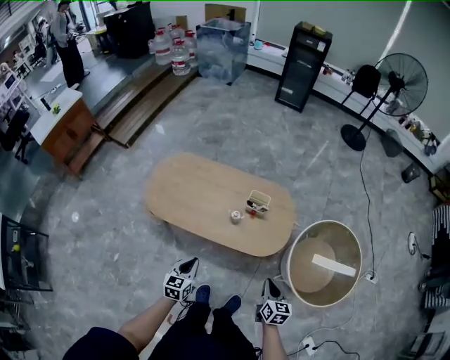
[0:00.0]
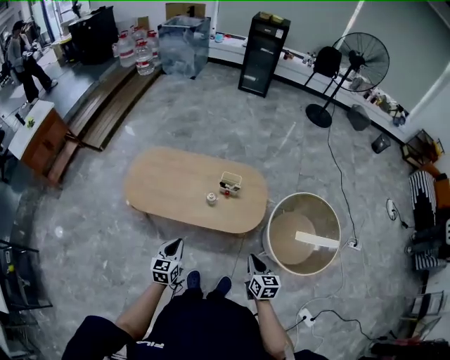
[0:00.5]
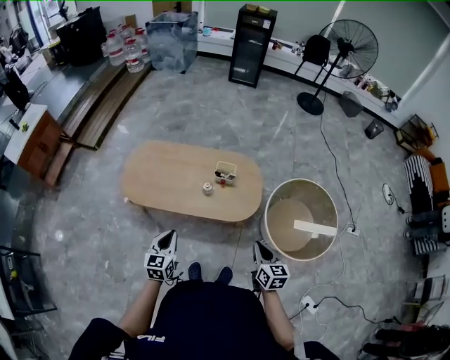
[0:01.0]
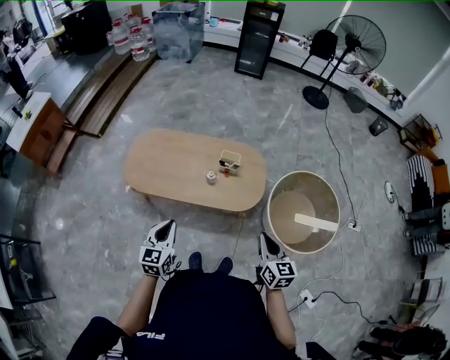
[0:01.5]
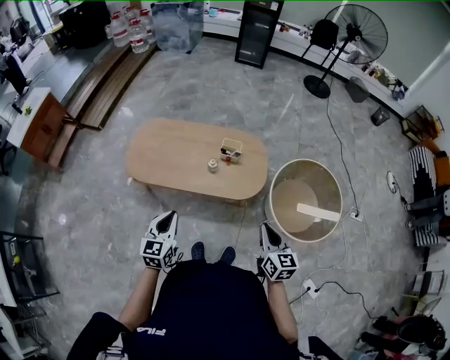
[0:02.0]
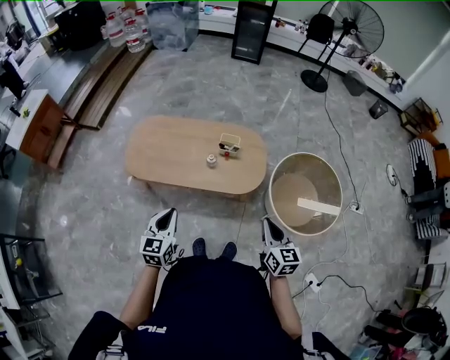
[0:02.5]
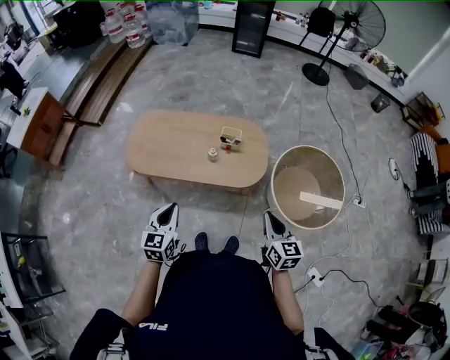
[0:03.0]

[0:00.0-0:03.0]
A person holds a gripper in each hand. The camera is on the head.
0:00.0 to 0:01.5: Both grippers travel together upward, approximately 20 cm.
0:01.5 to 0:03.0: The grippers make only small movements.

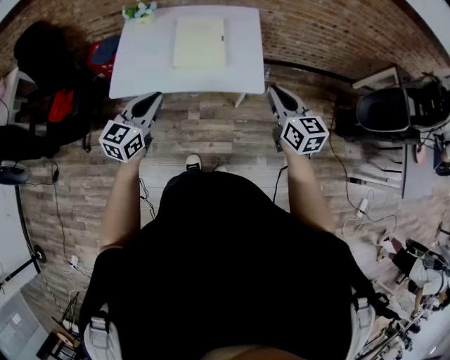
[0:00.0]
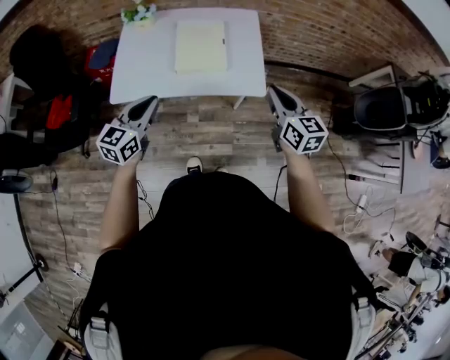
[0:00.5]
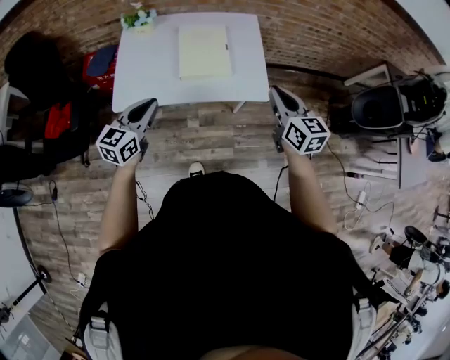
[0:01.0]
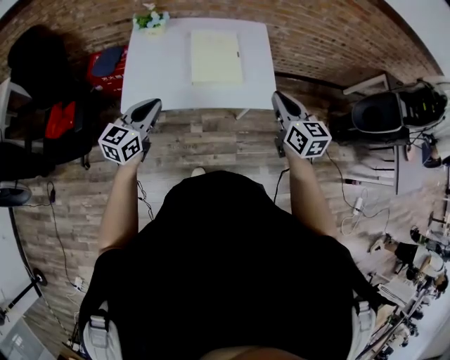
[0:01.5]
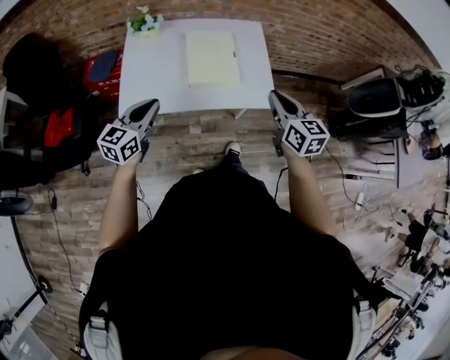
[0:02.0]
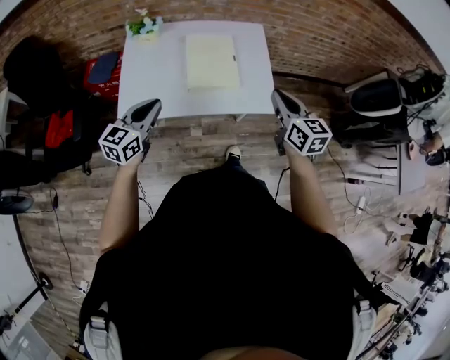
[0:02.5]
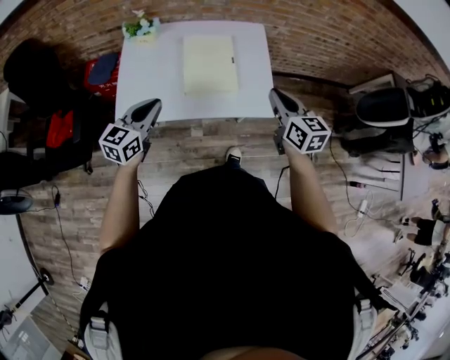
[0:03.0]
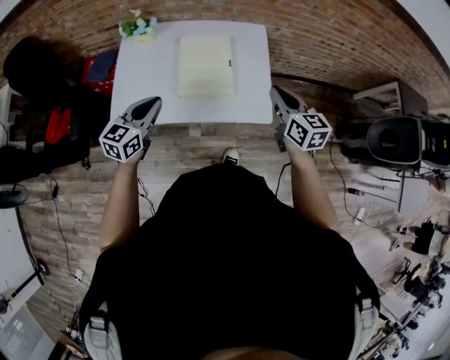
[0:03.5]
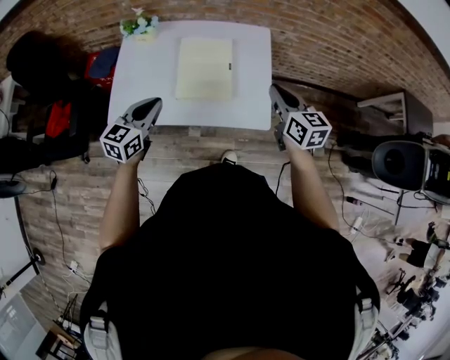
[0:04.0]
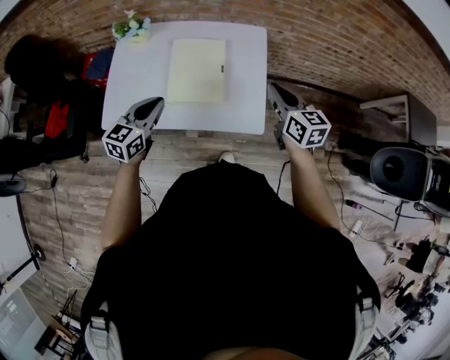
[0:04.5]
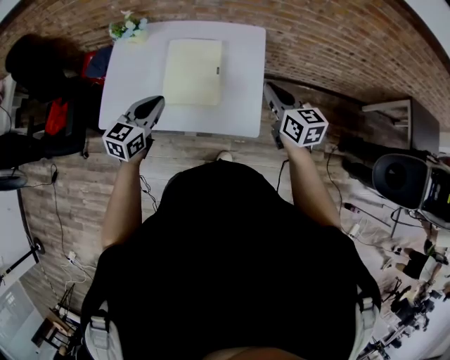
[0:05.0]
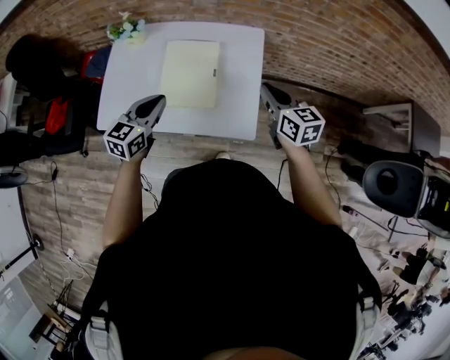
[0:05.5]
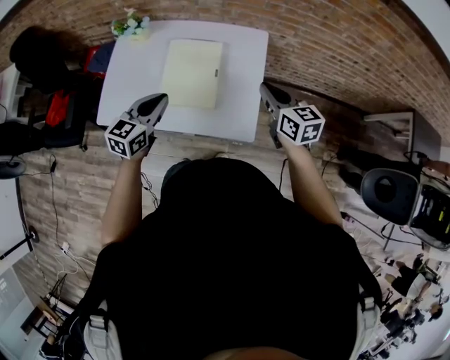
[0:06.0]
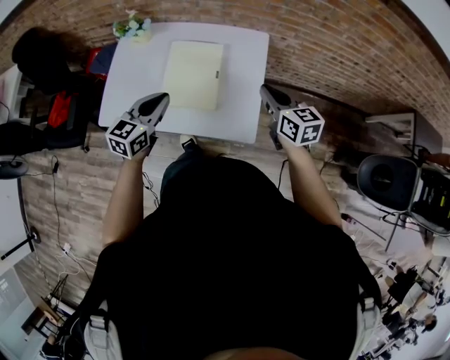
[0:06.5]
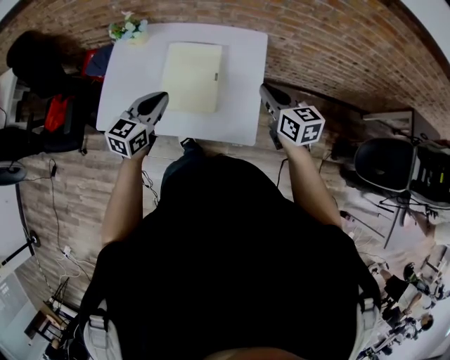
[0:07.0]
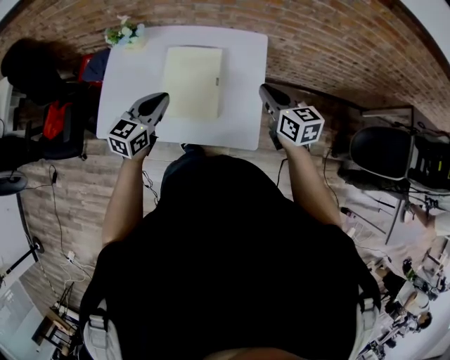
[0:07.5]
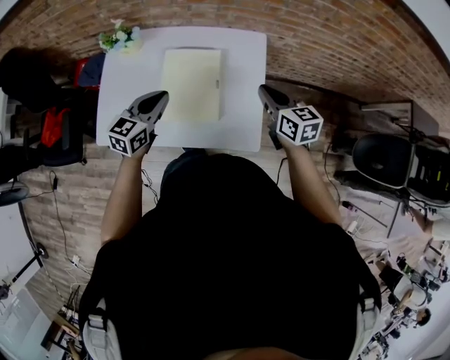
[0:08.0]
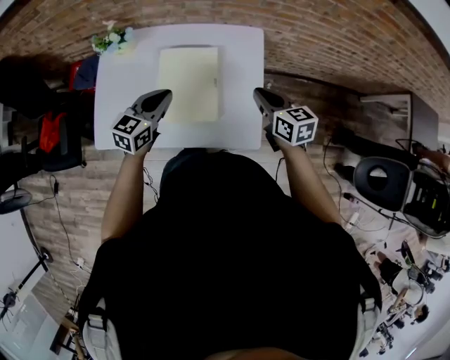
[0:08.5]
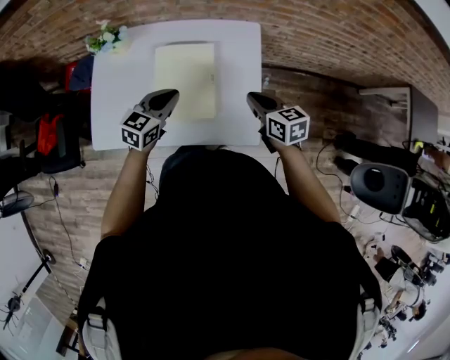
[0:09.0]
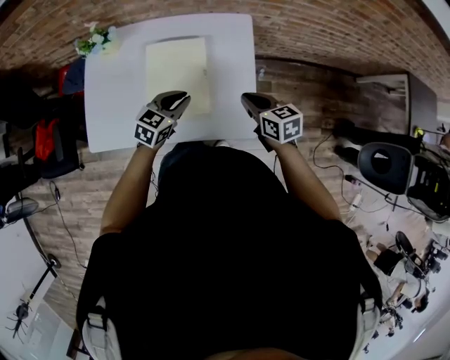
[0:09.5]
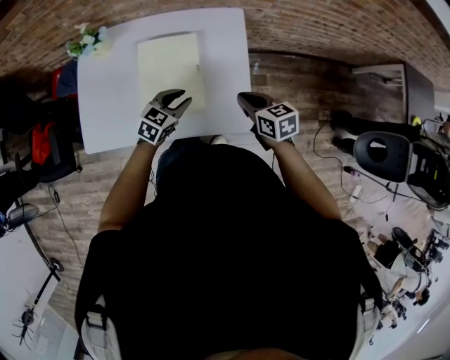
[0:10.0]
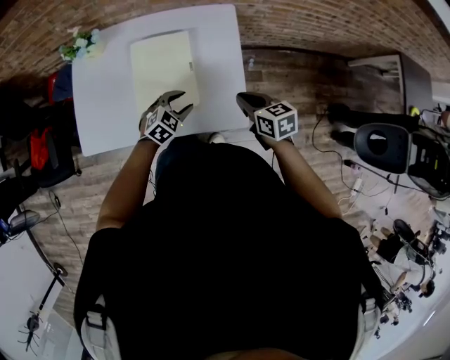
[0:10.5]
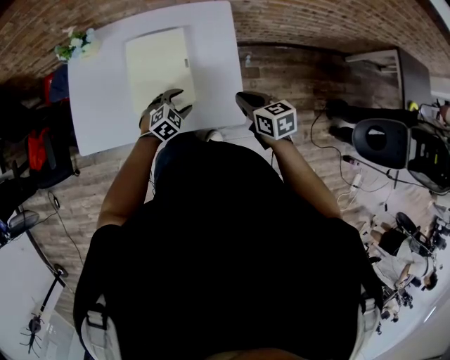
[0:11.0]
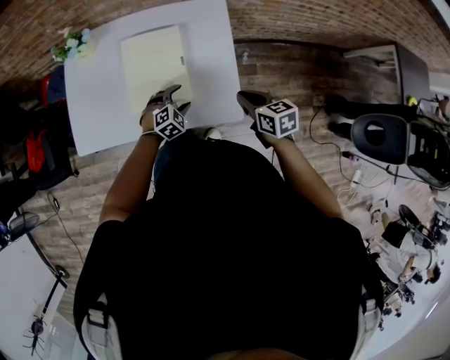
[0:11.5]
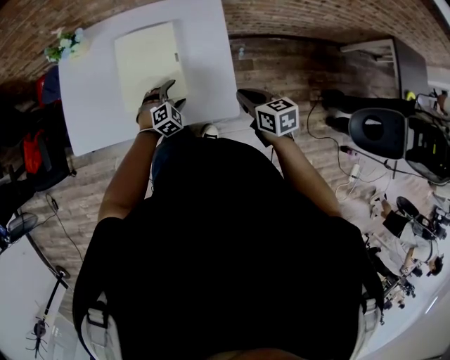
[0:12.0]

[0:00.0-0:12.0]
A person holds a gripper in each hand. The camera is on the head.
0:00.0 to 0:02.0: The grippers both shift to the left by some 15 cm.
0:02.0 to 0:04.0: The two grippers go some 15 cm forward and to the right.
0:04.0 to 0:06.0: The right gripper moves forward and to the right, roughly 10 cm. Meanwhile the left gripper heads to the right and forward, covering approximately 15 cm.
0:06.0 to 0:08.0: The right gripper travels forward by roughly 5 cm; the left gripper moves forward, approximately 10 cm.
0:08.0 to 0:10.0: The right gripper shifts approximately 10 cm downward and backward; the left gripper heads downward and to the right, covering some 15 cm, and swivels about 30 degrees.
0:10.0 to 0:12.0: The left gripper goes approximately 10 cm downward, turns by some 40 degrees, and opens. Meanwhile the right gripper goes some 10 cm to the right and backward.

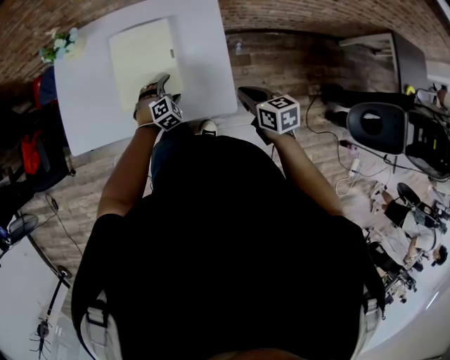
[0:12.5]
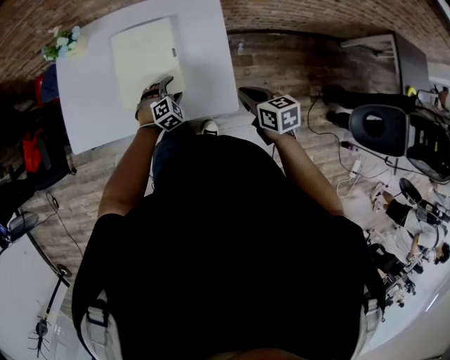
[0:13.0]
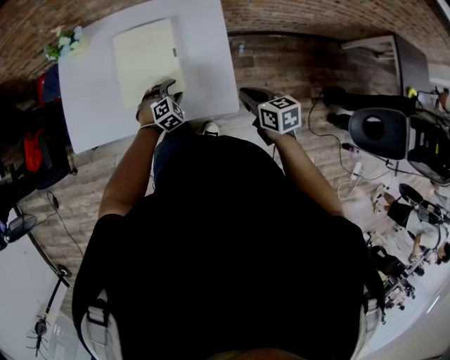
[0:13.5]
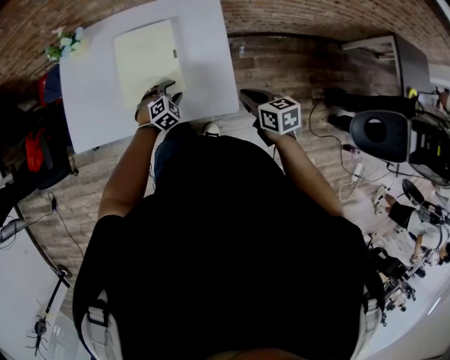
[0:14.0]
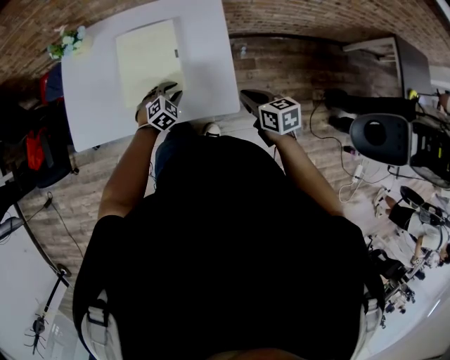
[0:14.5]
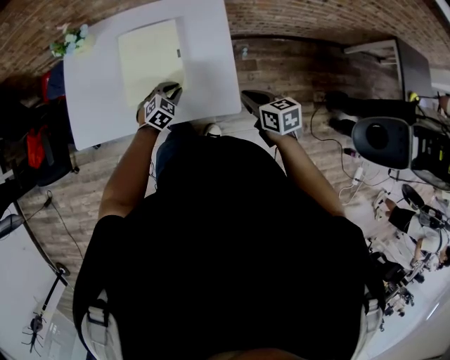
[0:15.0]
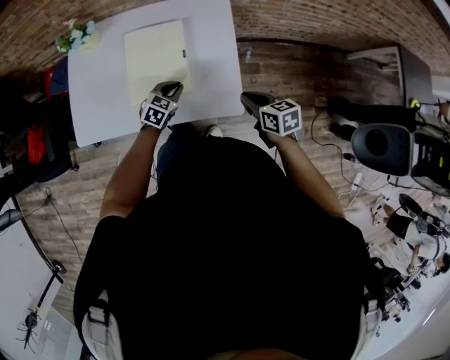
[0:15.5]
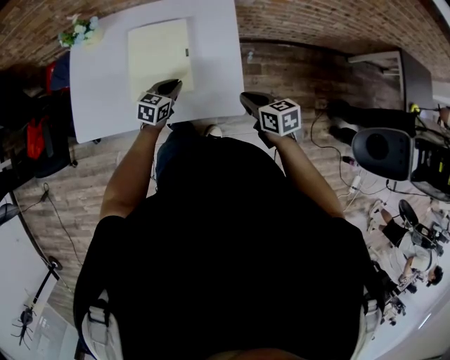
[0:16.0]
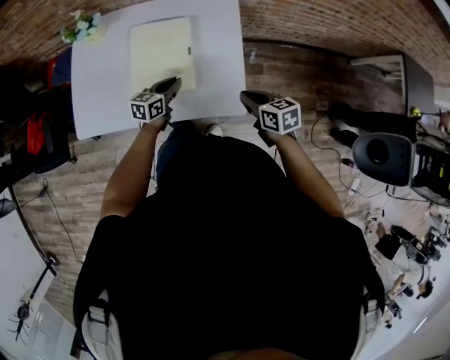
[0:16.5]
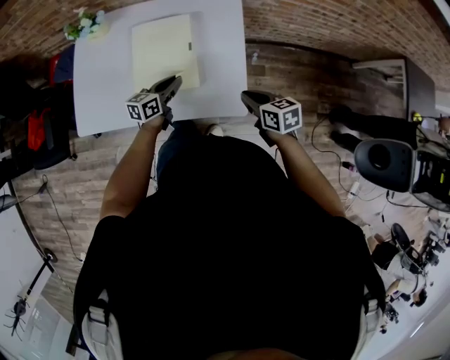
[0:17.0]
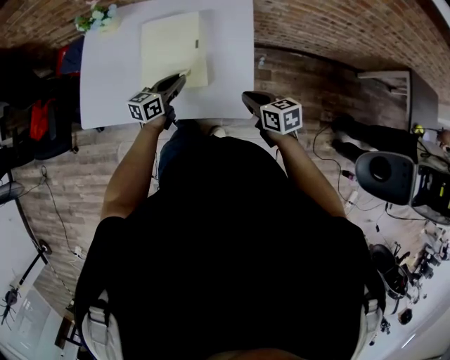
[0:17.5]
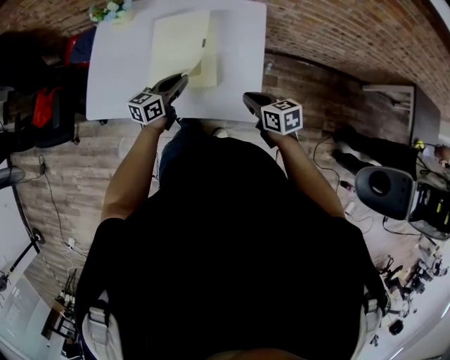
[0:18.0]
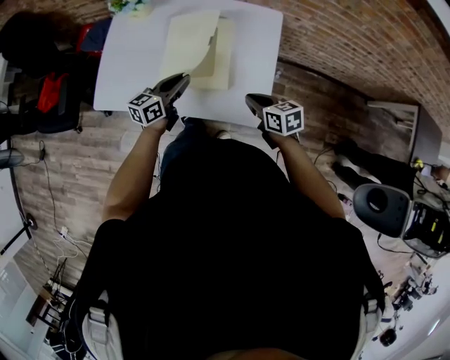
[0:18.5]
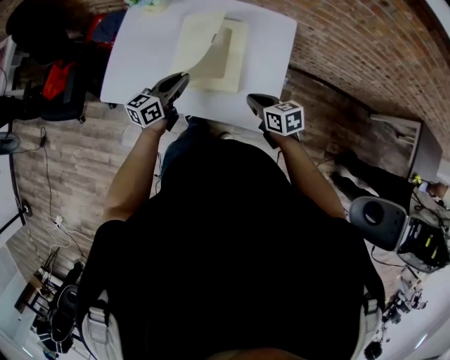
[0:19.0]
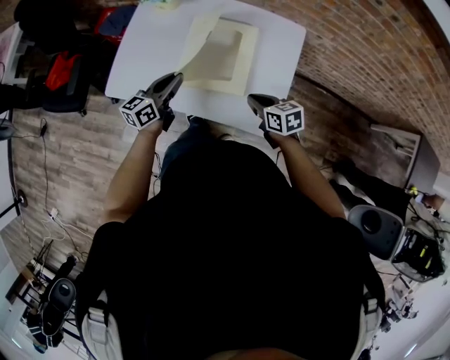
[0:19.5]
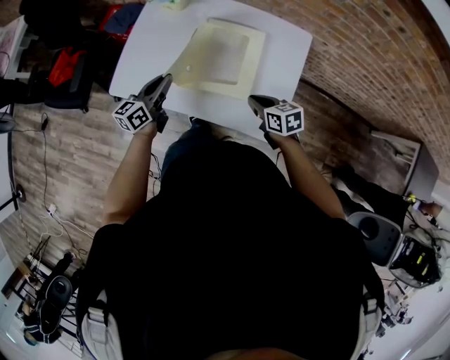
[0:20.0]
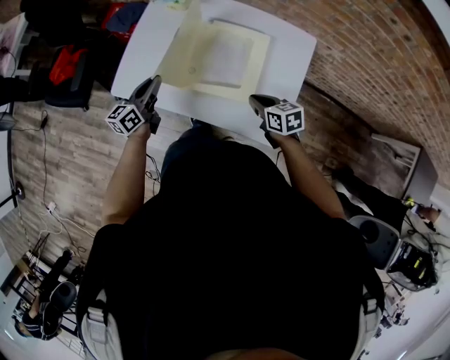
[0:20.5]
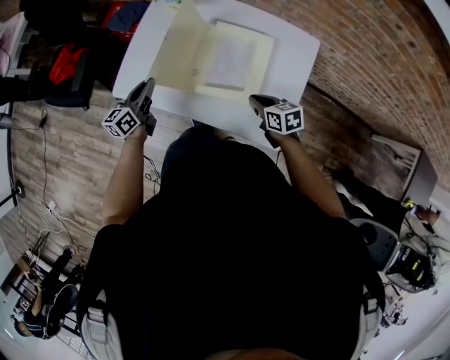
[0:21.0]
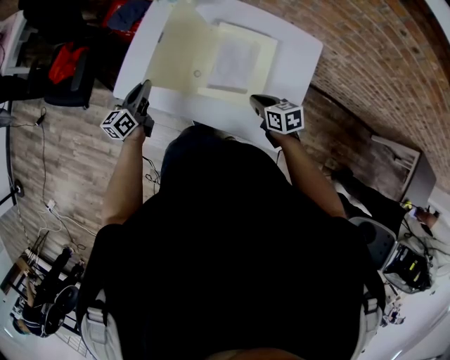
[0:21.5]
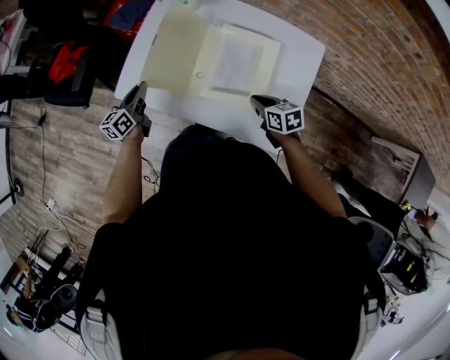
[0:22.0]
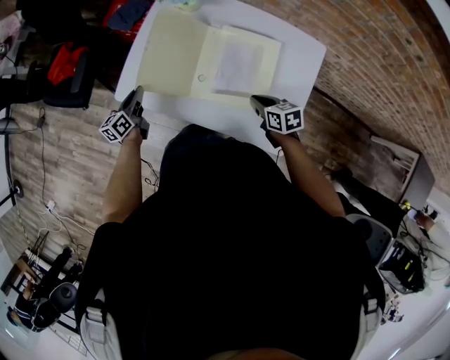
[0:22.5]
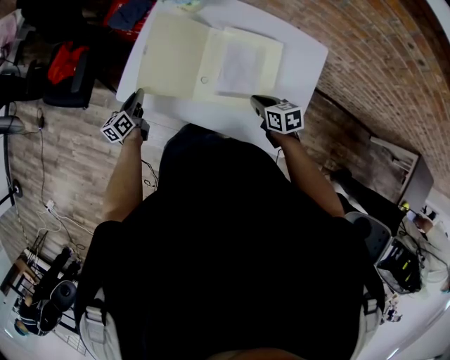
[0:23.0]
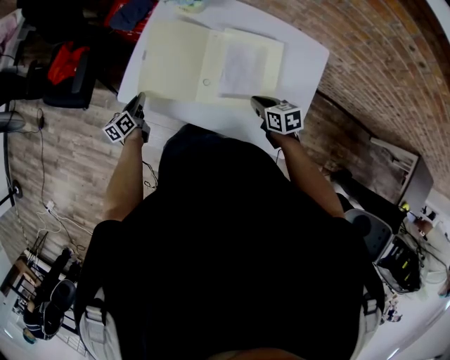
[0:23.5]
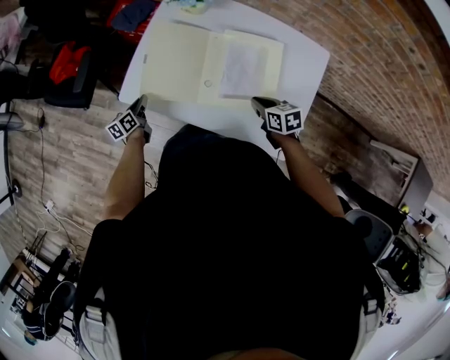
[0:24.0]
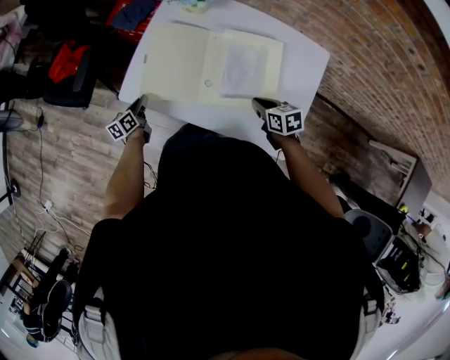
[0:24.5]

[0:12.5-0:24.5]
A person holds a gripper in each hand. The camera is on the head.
0:12.5 to 0:14.5: The left gripper closes.
0:14.5 to 0:16.5: The left gripper shifts about 5 cm upward, and rotates around the line of its fingers by about 50 degrees, counterclockwise from behind.
0:16.5 to 0:18.5: The left gripper is displaced upward and to the left by approximately 10 cm, while the right gripper travels to the left by some 5 cm.
0:18.5 to 0:20.5: The left gripper moves to the left, roughly 20 cm, and swivels approximately 20 degrees, while the right gripper travels to the left and forward by approximately 10 cm.
0:20.5 to 0:22.5: The left gripper travels to the left, downward and forward by roughly 15 cm, while the right gripper goes some 5 cm forward.
0:22.5 to 0:24.5: The left gripper is displaced downward by about 10 cm.
